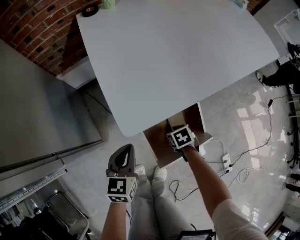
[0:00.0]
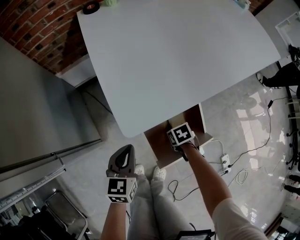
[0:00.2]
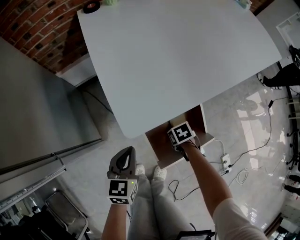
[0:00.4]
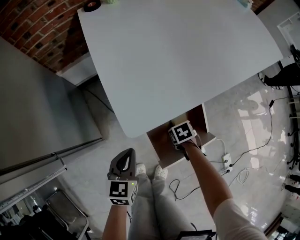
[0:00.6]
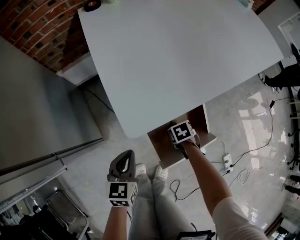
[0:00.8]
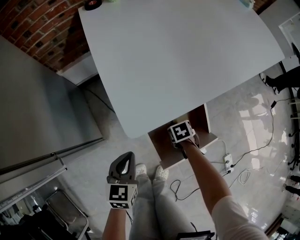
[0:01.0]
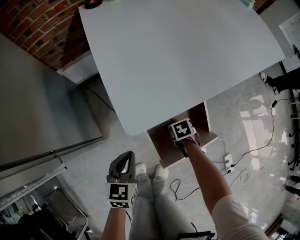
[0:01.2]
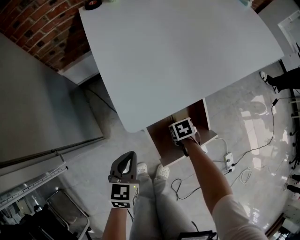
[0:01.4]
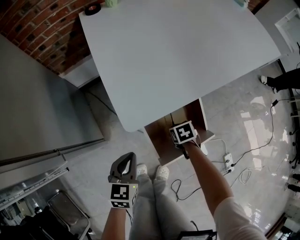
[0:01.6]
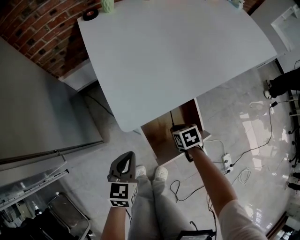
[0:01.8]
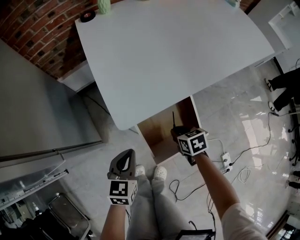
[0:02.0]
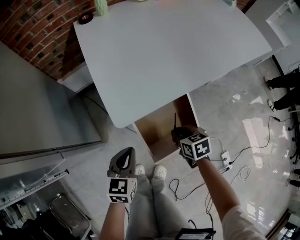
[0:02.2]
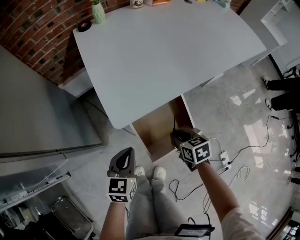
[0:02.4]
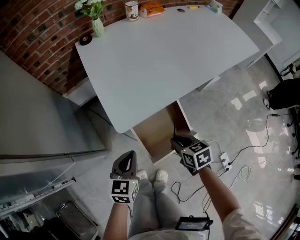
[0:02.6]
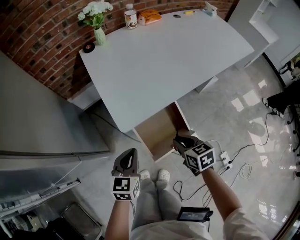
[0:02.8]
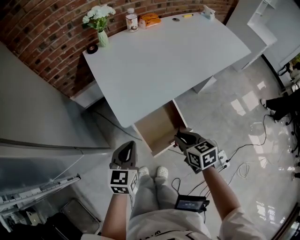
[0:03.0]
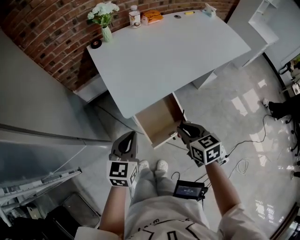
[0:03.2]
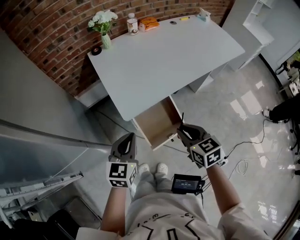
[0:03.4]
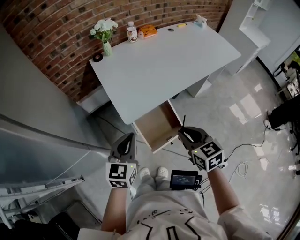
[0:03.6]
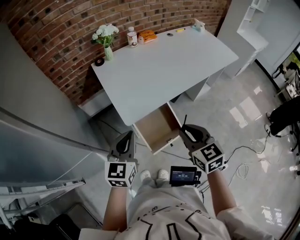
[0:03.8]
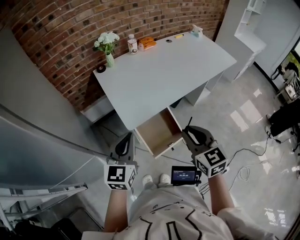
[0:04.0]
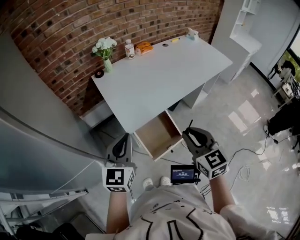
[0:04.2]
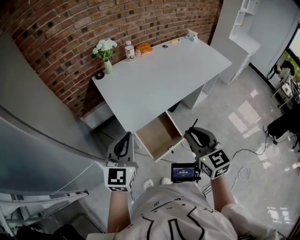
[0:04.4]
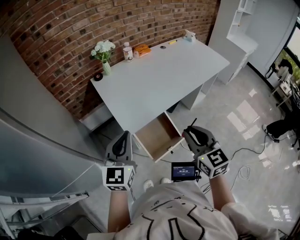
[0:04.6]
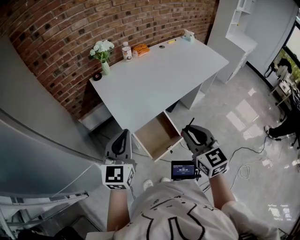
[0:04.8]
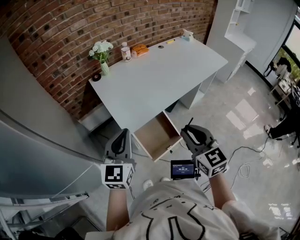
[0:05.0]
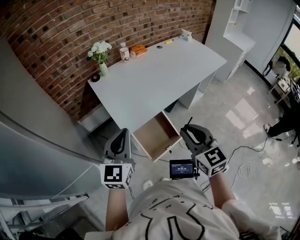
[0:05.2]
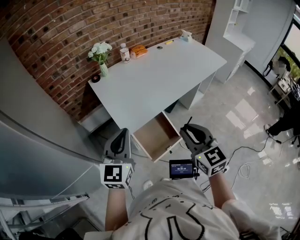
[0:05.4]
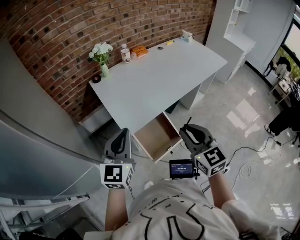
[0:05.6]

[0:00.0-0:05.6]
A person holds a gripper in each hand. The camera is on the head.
0.0 to 1.4 s: The left gripper shifts by approximately 5 cm.
1.4 to 2.8 s: The right gripper is displaced upward by roughly 30 cm, and tips its fingers upward by approximately 30 degrees; the left gripper is displaced upward by approximately 15 cm.
2.8 to 4.2 s: Both grippers travel together upward, roughly 25 cm. The left gripper rotates roughly 20 degrees, while the right gripper rotates roughly 40 degrees.
4.2 to 5.6 s: The grippers move only a little.

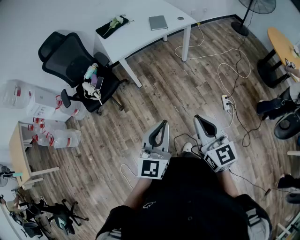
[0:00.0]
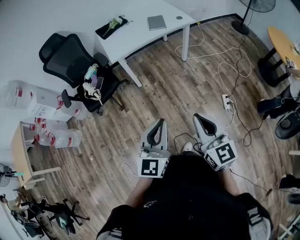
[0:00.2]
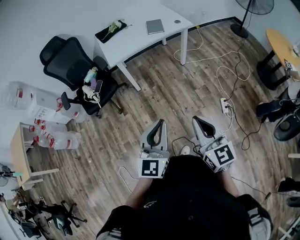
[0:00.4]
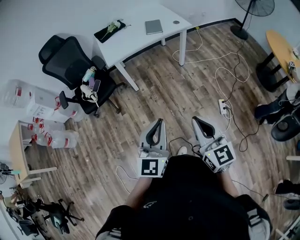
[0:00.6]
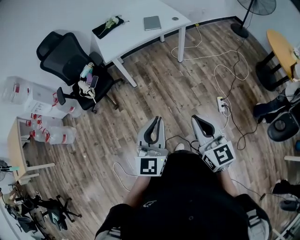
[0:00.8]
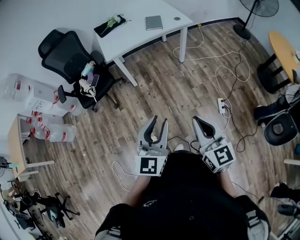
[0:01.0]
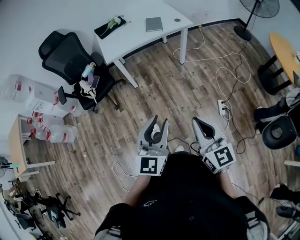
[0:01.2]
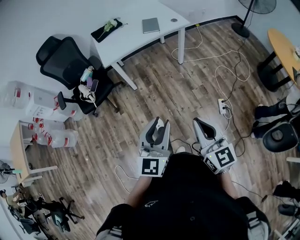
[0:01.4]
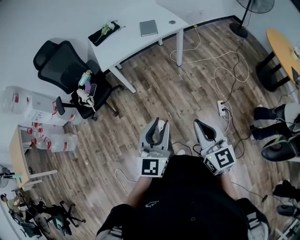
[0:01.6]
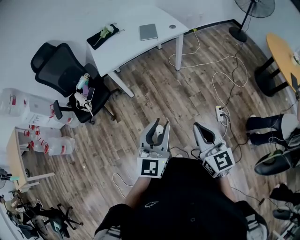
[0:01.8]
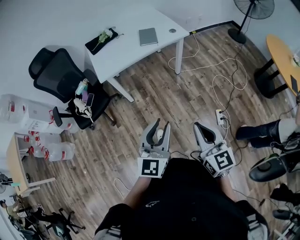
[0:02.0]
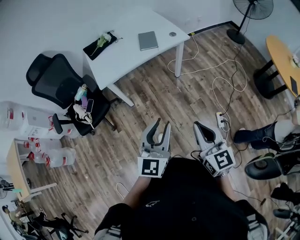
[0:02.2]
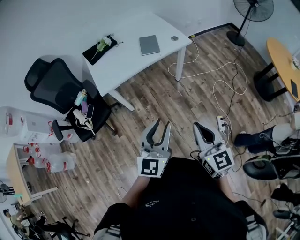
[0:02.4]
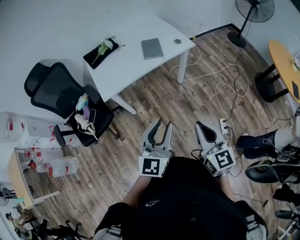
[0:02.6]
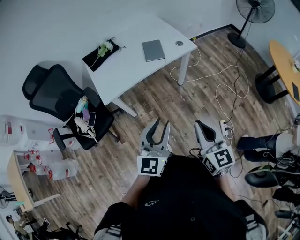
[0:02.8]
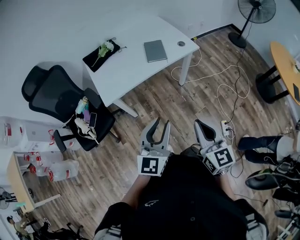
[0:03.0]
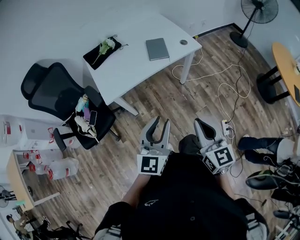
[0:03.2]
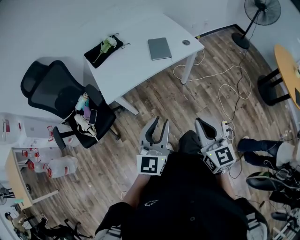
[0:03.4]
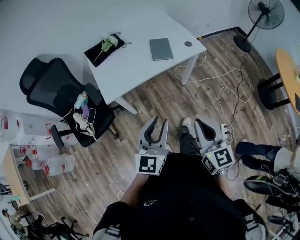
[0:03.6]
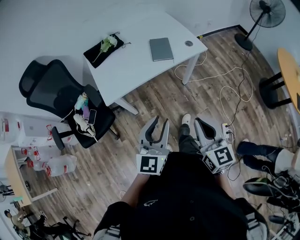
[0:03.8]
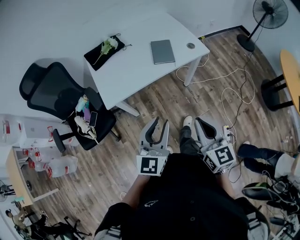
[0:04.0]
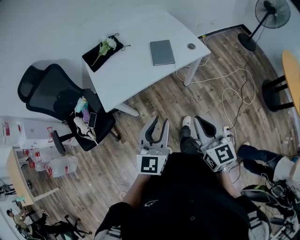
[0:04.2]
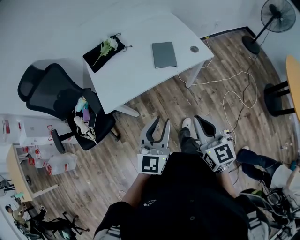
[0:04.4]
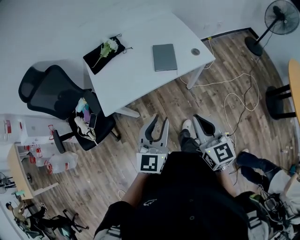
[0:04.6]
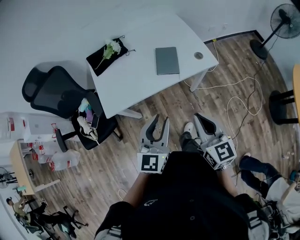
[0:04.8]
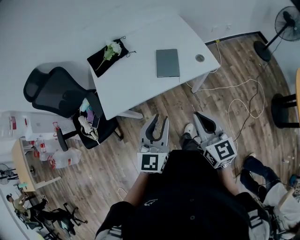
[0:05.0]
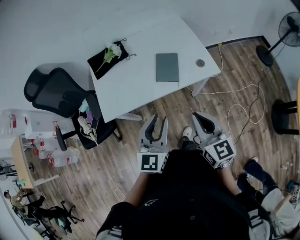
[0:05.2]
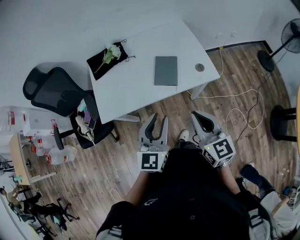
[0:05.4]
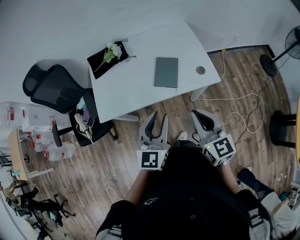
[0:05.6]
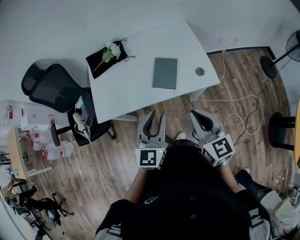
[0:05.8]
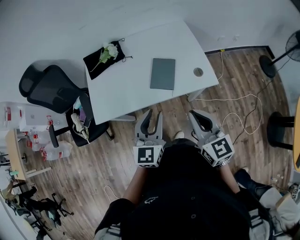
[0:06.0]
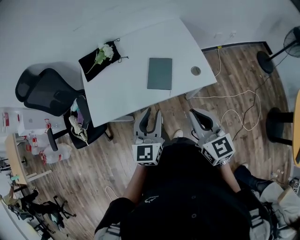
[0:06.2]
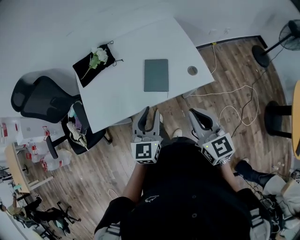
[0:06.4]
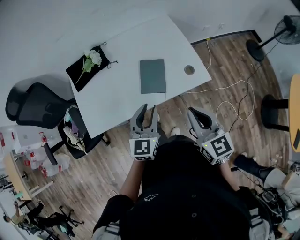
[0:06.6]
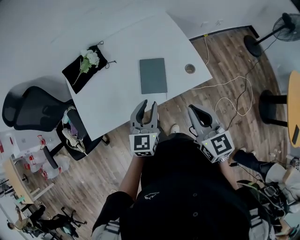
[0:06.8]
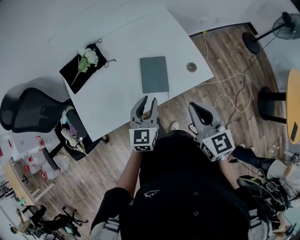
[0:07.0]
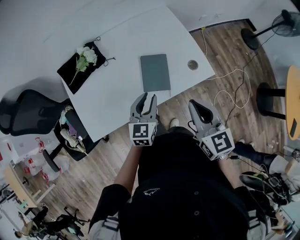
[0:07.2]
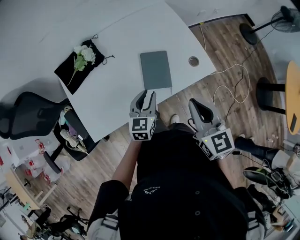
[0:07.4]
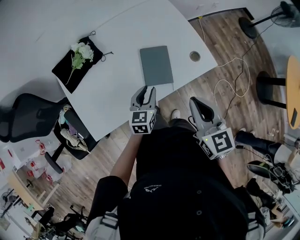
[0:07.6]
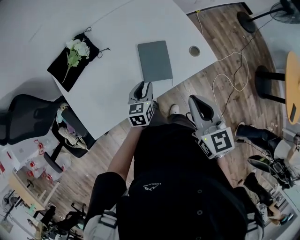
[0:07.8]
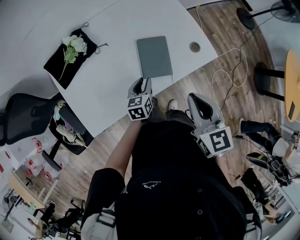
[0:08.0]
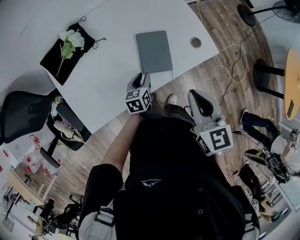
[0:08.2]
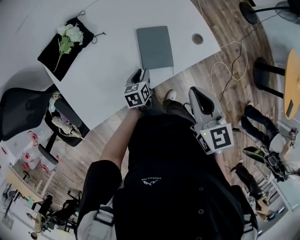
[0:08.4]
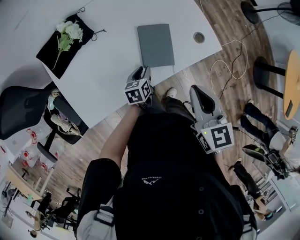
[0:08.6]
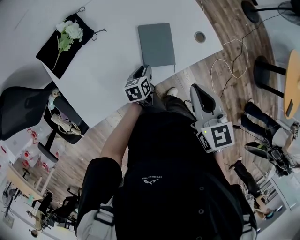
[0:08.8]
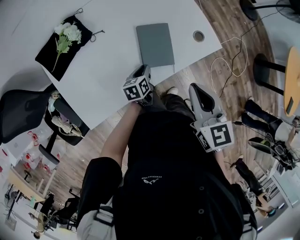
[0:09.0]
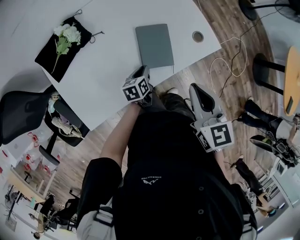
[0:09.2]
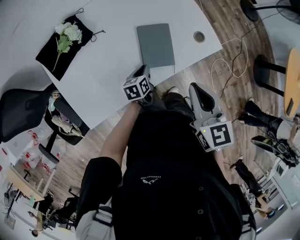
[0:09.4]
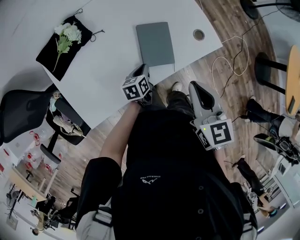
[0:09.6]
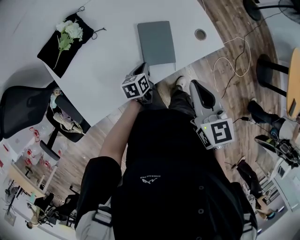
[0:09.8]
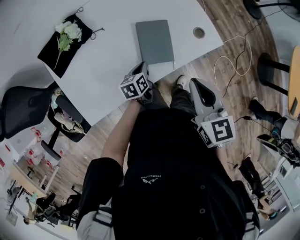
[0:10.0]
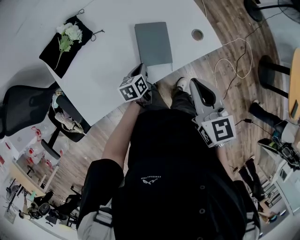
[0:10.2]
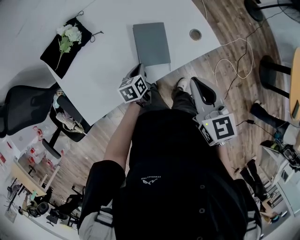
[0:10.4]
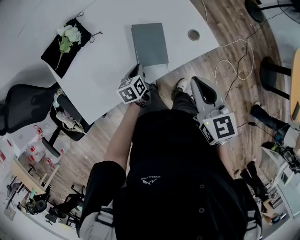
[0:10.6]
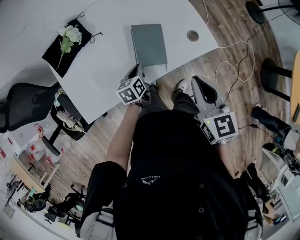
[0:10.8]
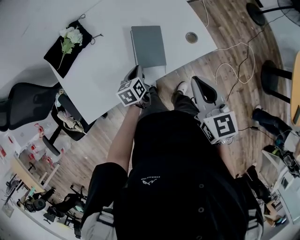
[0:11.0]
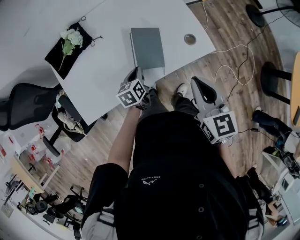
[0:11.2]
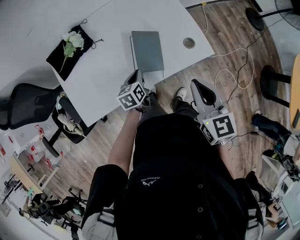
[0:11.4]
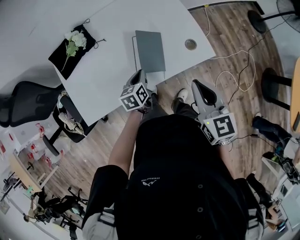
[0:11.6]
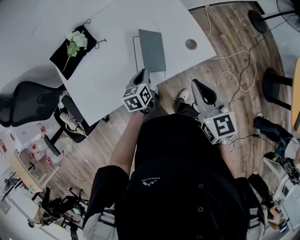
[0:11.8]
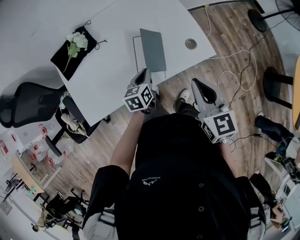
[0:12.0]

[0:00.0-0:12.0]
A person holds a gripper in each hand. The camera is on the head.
0.0 to 1.6 s: The two grippers go approximately 10 cm to the right. The left gripper opens up.
1.6 to 3.0 s: Both grippers move forward, roughly 30 cm.
3.0 to 4.4 s: Both grippers move forward, some 15 cm.
4.4 to 6.0 s: Both grippers move forward and to the right, approximately 20 cm.
6.0 to 7.6 s: The left gripper travels downward and forward by some 25 cm, and turns by roughly 30 degrees; the right gripper moves forward and to the left, some 15 cm, and rotates approximately 20 degrees.
7.6 to 9.0 s: The left gripper travels downward by about 15 cm, and changes its angle by roughly 30 degrees.
9.0 to 10.4 s: There are only small adjustments of the grippers.
10.4 to 12.0 s: The left gripper travels upward and to the right by approximately 10 cm; the right gripper moves to the right, roughly 5 cm.

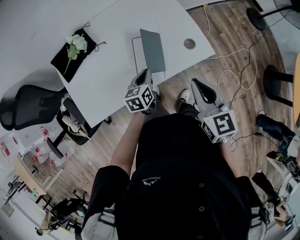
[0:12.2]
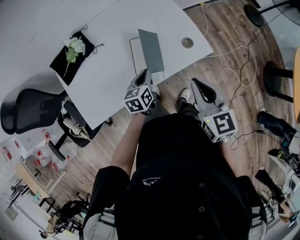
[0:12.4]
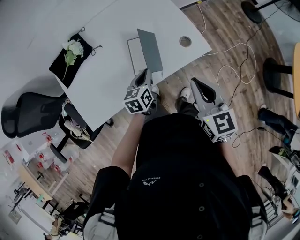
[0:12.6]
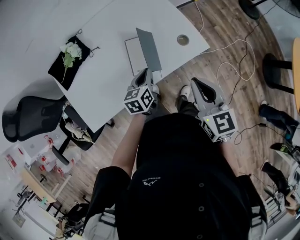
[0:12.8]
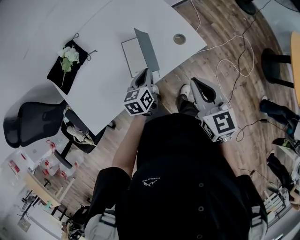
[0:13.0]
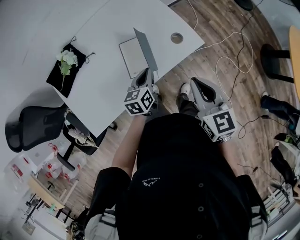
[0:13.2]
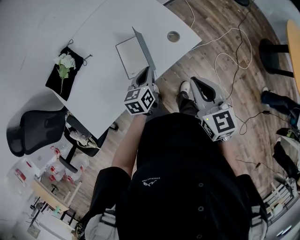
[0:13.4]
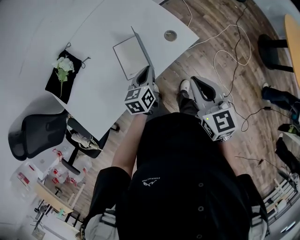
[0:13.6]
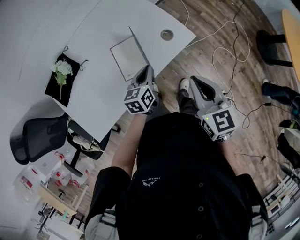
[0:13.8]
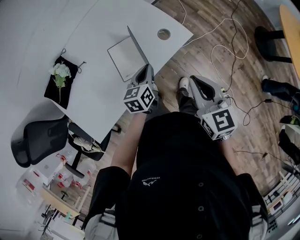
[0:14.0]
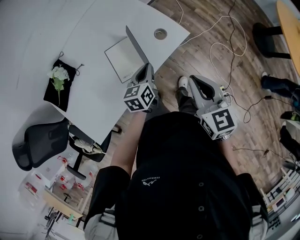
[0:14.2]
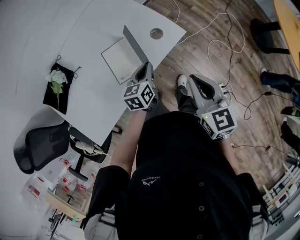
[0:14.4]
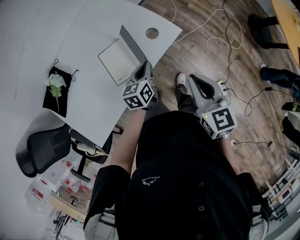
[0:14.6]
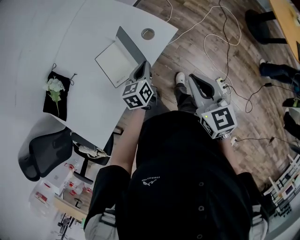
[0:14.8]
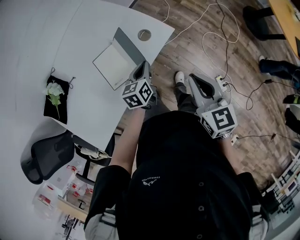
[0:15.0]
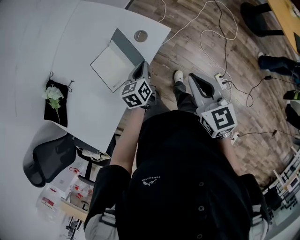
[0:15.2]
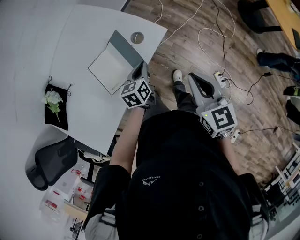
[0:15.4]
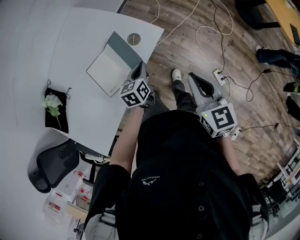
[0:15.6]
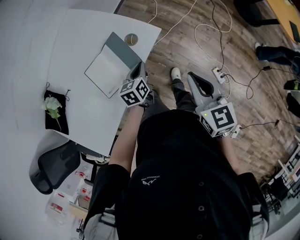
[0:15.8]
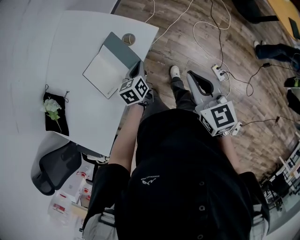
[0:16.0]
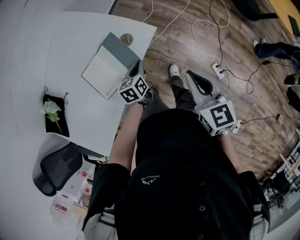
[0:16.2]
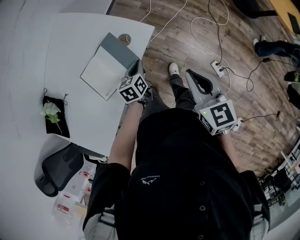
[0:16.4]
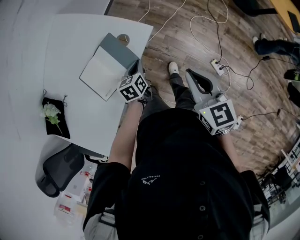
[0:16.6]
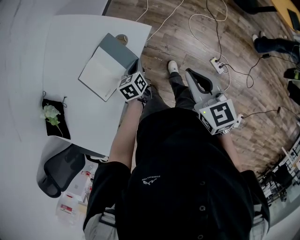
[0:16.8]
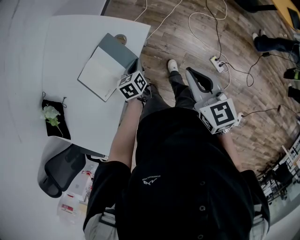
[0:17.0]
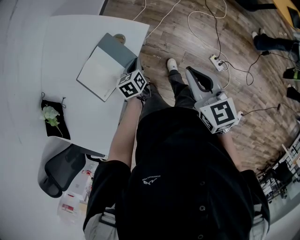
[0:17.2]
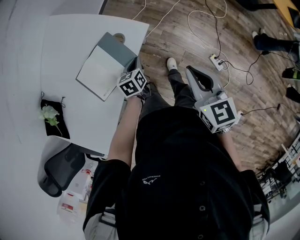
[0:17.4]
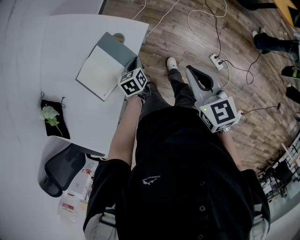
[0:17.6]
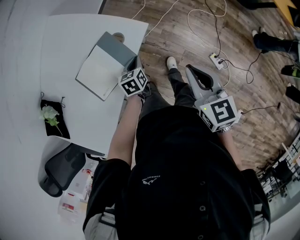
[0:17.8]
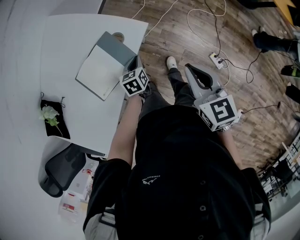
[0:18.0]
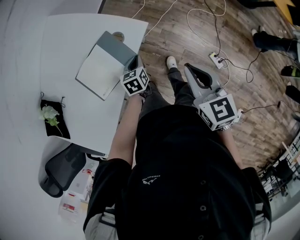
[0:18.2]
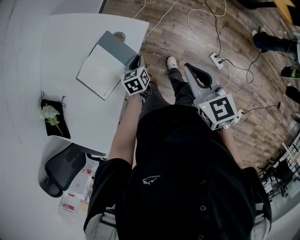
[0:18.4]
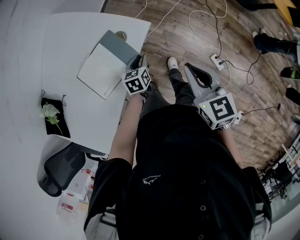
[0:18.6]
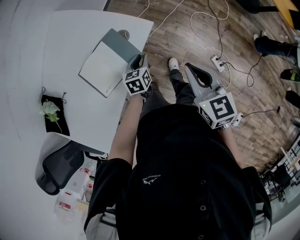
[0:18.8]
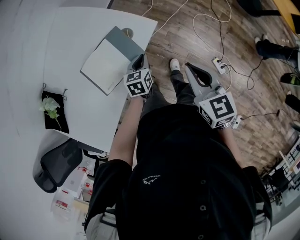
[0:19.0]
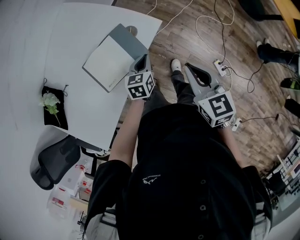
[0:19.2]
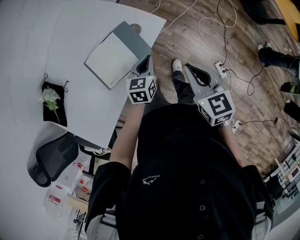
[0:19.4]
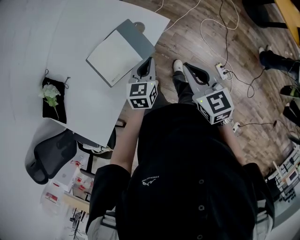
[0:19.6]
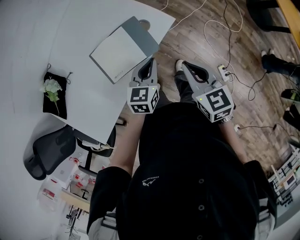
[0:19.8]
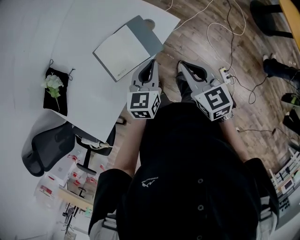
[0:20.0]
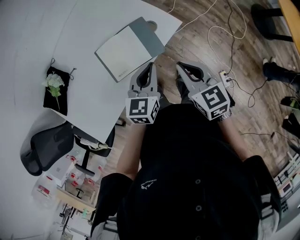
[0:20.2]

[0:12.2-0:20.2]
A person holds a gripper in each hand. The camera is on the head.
12.2 to 13.8 s: The right gripper goes approximately 5 cm to the right. Meanwhile the left gripper shifts some 10 cm to the right.
13.8 to 15.4 s: The right gripper goes about 10 cm to the right, while the left gripper is displaced to the right and downward by roughly 10 cm.
15.4 to 17.0 s: The right gripper shifts by some 5 cm; the left gripper moves downward, approximately 10 cm.
17.0 to 18.6 s: The left gripper opens its fingers.
18.6 to 20.2 s: The right gripper heads to the left, covering about 10 cm, and swivels about 20 degrees, while the left gripper travels upward by some 20 cm, swivels some 30 degrees, and closes its fingers.
